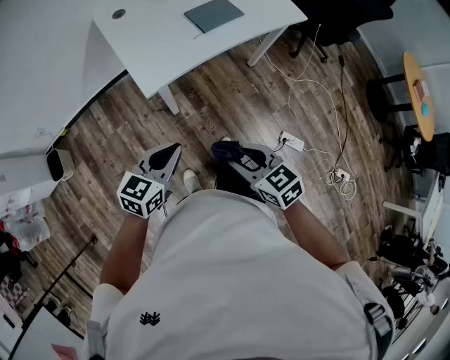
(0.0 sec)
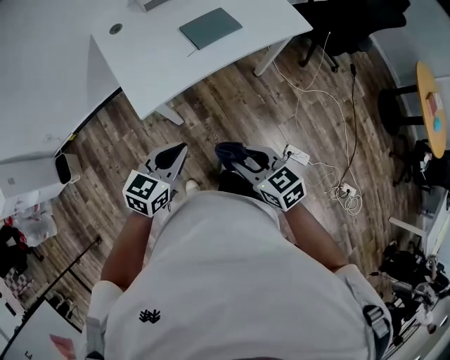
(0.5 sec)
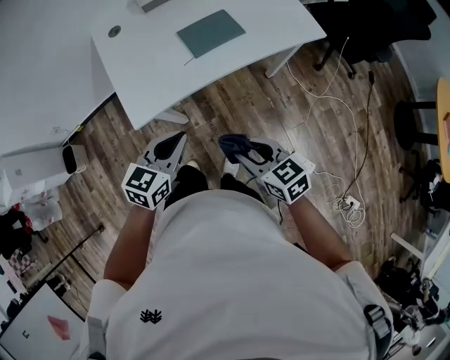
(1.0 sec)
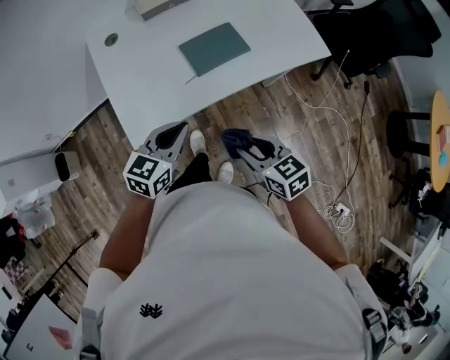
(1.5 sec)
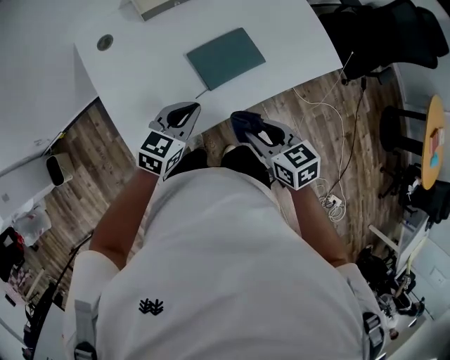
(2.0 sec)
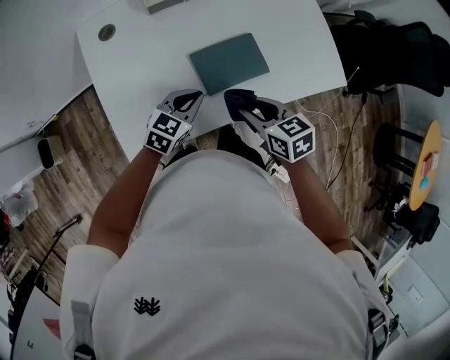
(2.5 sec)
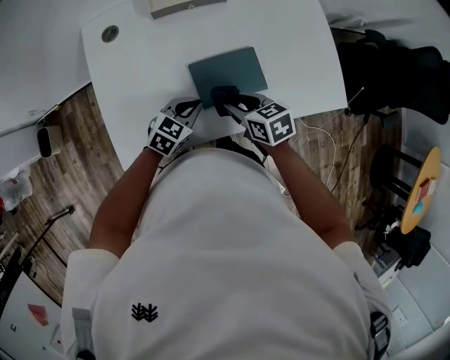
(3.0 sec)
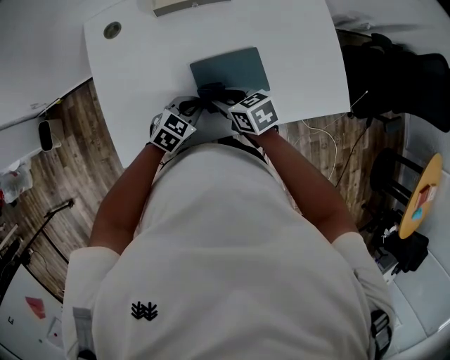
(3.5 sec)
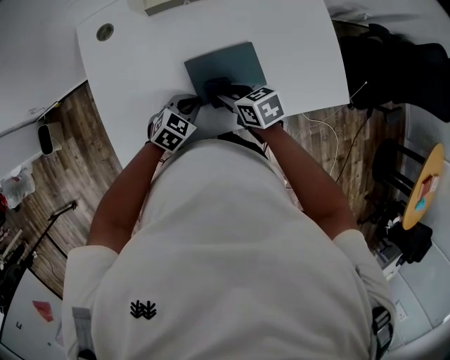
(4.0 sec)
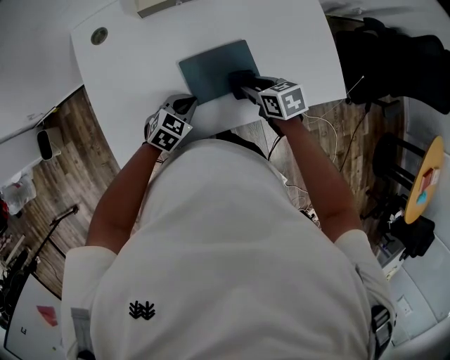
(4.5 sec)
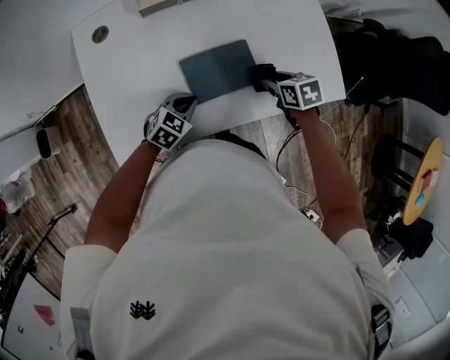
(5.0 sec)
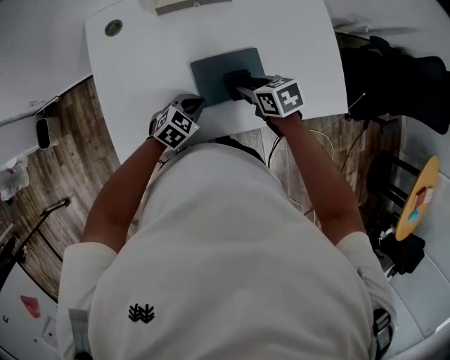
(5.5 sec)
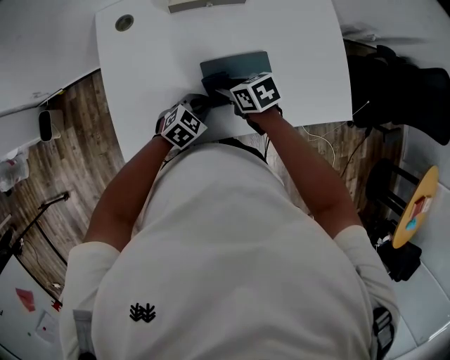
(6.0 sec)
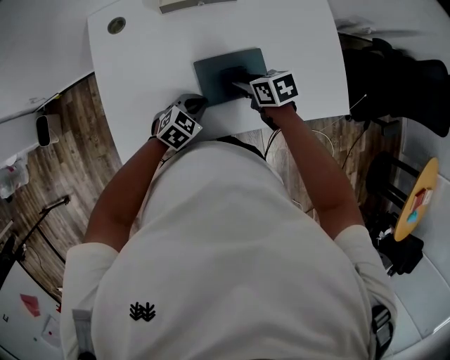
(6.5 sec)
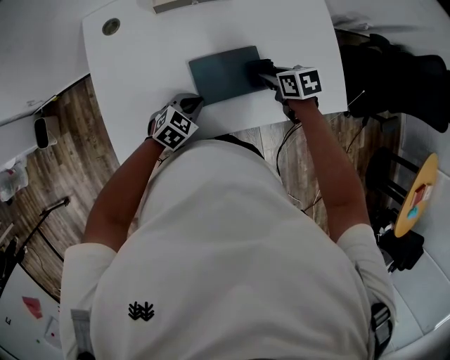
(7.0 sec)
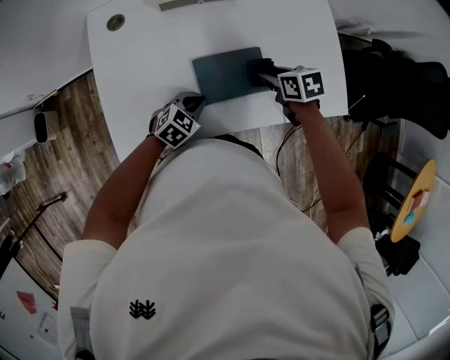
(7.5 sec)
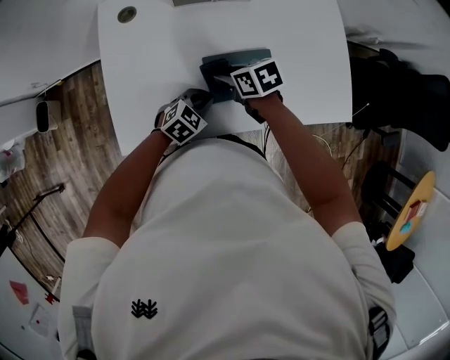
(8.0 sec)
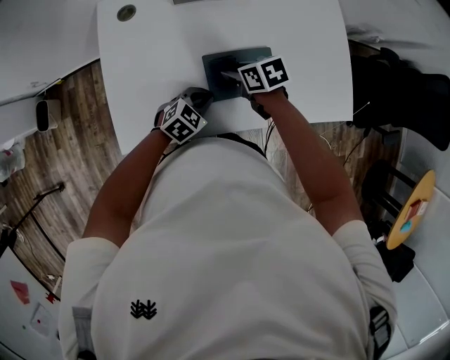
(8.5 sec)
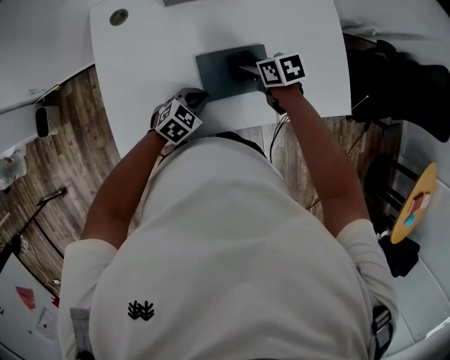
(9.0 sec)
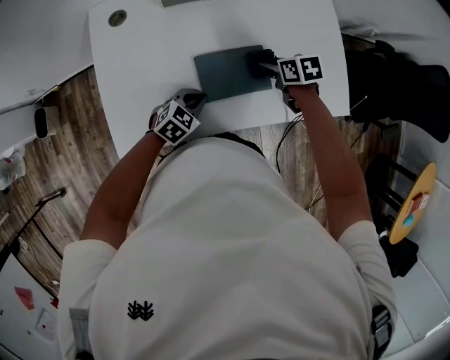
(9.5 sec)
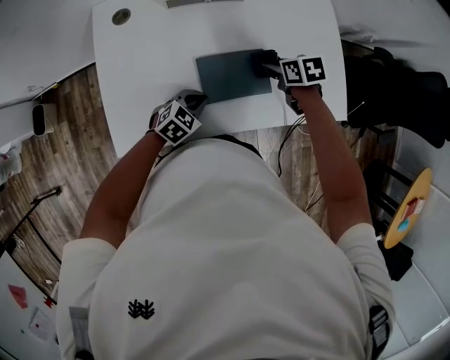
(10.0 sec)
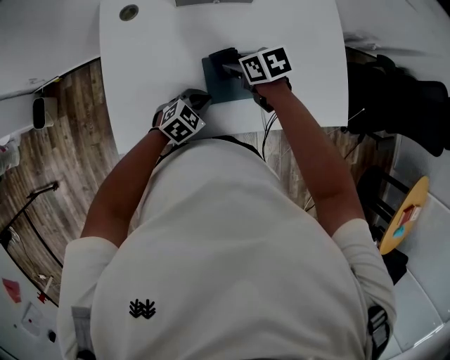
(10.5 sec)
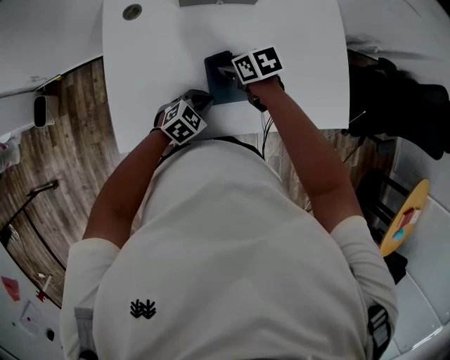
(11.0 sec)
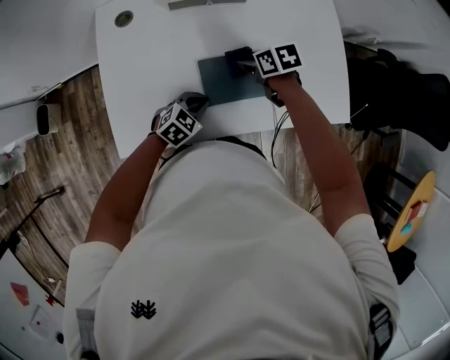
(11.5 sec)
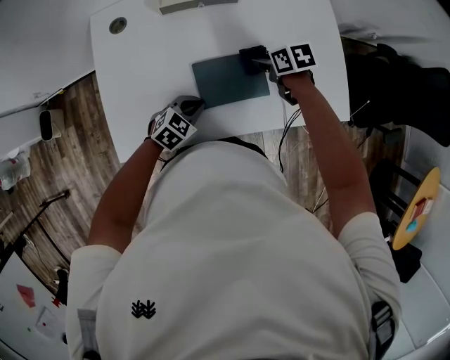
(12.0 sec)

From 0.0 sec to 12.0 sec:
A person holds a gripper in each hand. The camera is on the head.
From 0.0 sec to 2.0 sec: The left gripper is displaced forward by approximately 35 cm, while the right gripper travels forward and to the right by approximately 35 cm.
From 2.0 sec to 4.0 sec: The right gripper is displaced forward and downward by some 20 cm, and changes its angle by some 20 degrees; the left gripper heads downward and forward, covering some 15 cm, and turns by approximately 20 degrees.
From 4.0 sec to 6.0 sec: The right gripper reaches approximately 15 cm to the right, then returns.
From 8.0 sec to 10.0 sec: The right gripper moves some 15 cm.

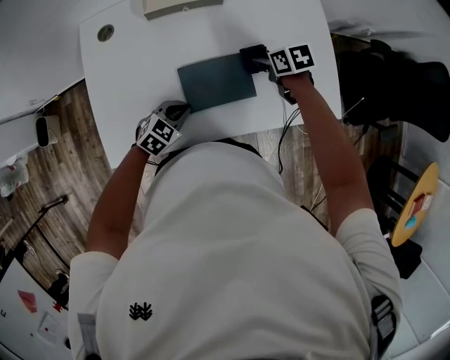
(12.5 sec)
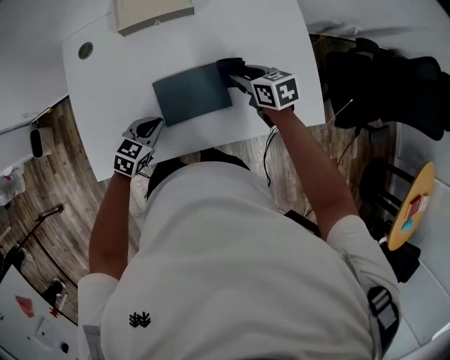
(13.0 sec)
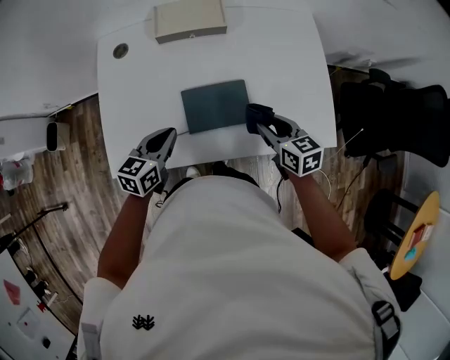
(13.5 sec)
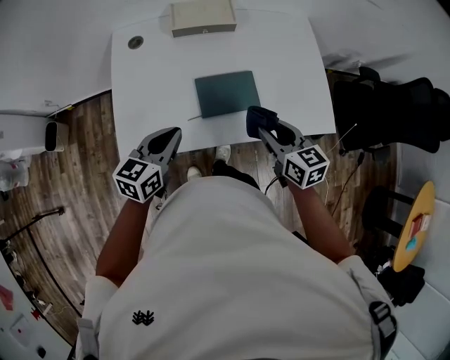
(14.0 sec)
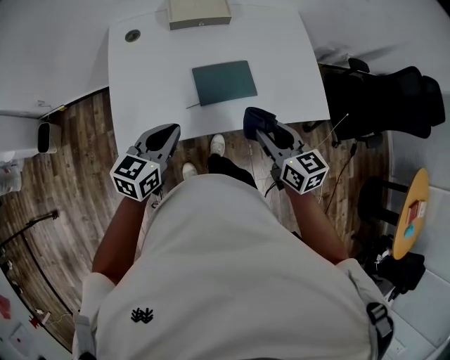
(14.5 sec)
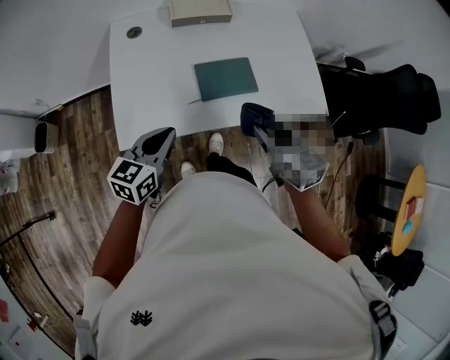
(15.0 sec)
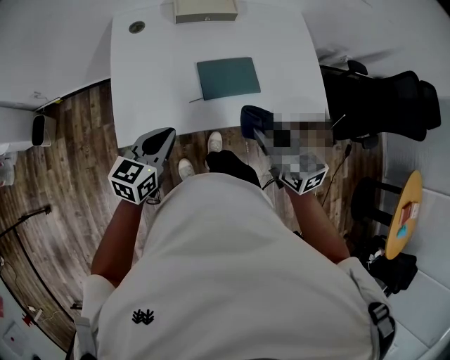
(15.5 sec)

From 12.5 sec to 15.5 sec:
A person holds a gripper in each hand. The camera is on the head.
From 12.5 sec to 14.0 sec: The left gripper heads upward, covering approximately 20 cm, and changes its angle by roughly 40 degrees; the right gripper heads backward and upward, covering approximately 25 cm, and turns by some 30 degrees.
From 14.0 sec to 15.5 sec: Both grippers move backward, roughly 5 cm.

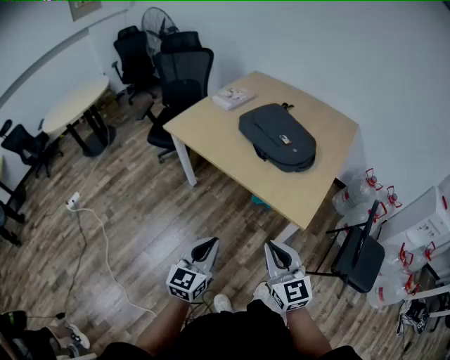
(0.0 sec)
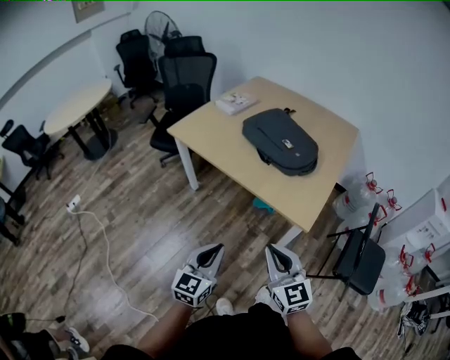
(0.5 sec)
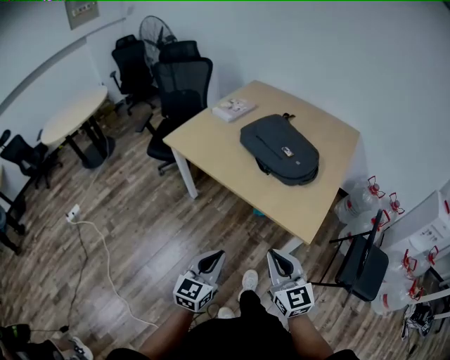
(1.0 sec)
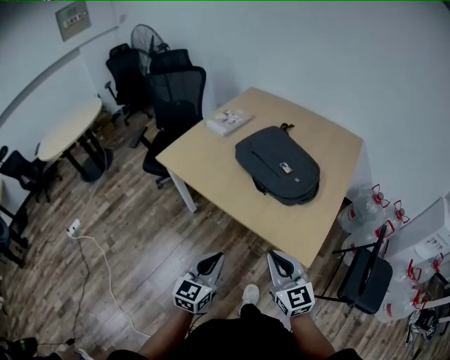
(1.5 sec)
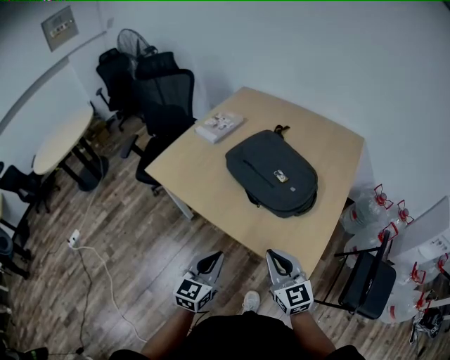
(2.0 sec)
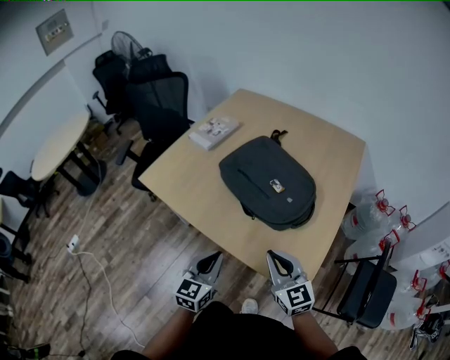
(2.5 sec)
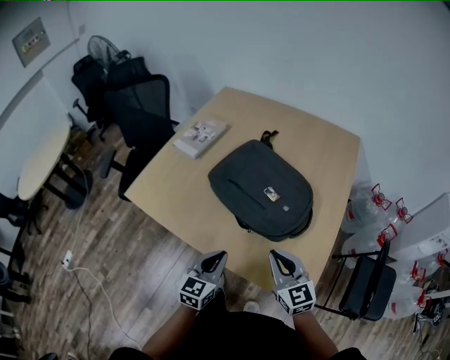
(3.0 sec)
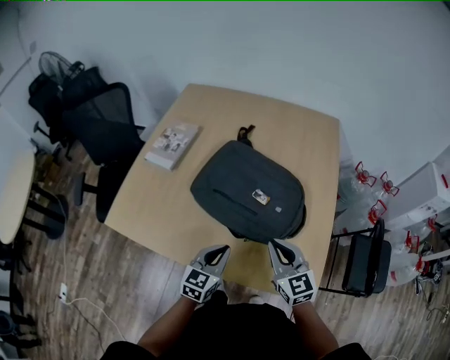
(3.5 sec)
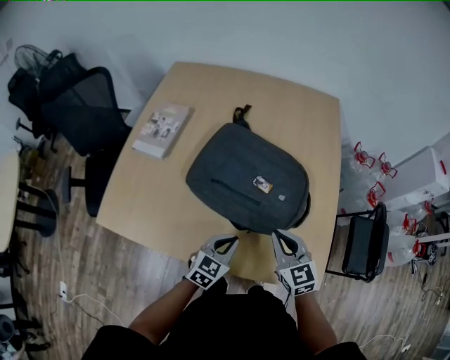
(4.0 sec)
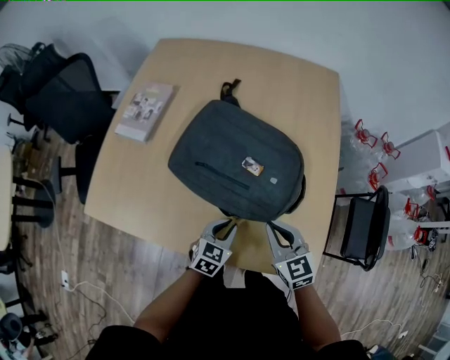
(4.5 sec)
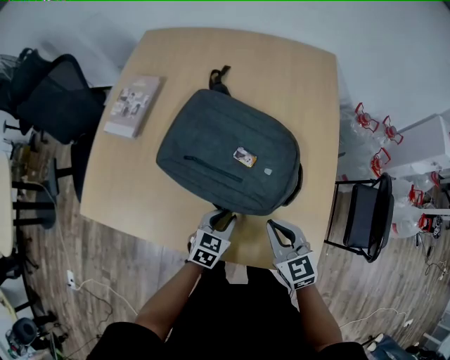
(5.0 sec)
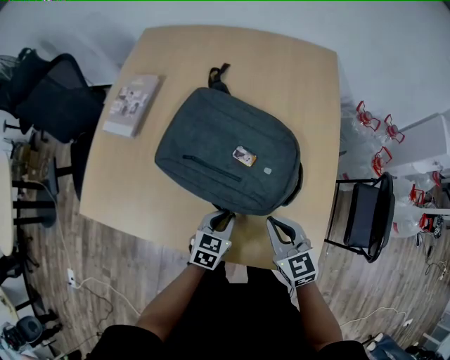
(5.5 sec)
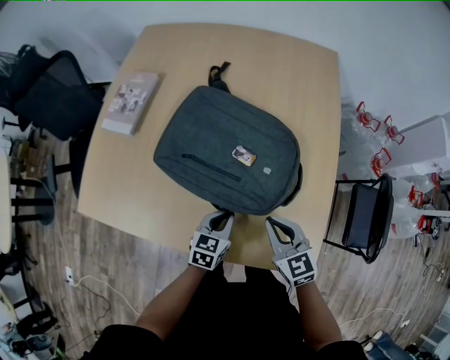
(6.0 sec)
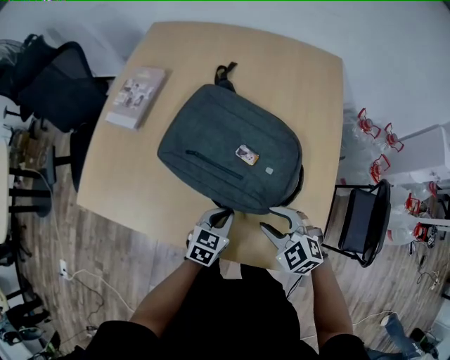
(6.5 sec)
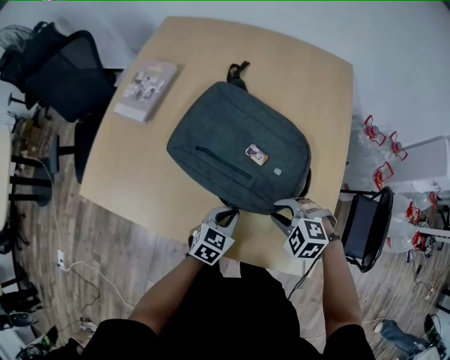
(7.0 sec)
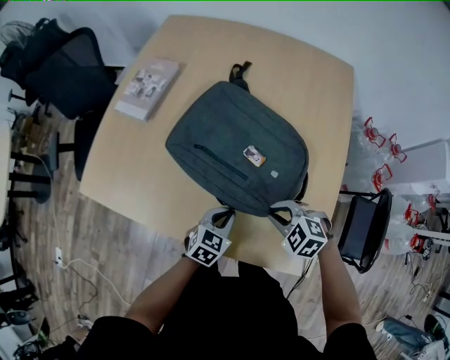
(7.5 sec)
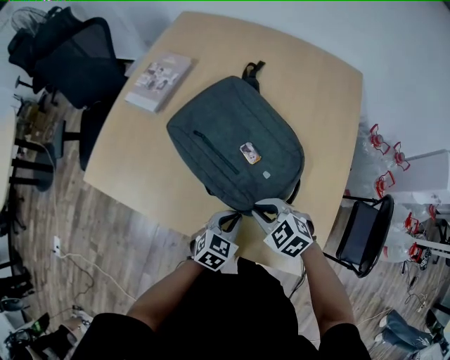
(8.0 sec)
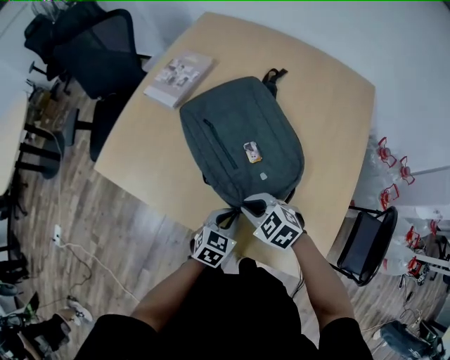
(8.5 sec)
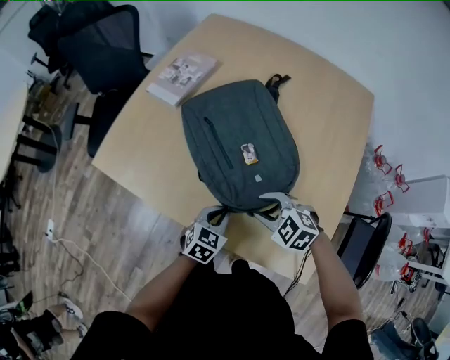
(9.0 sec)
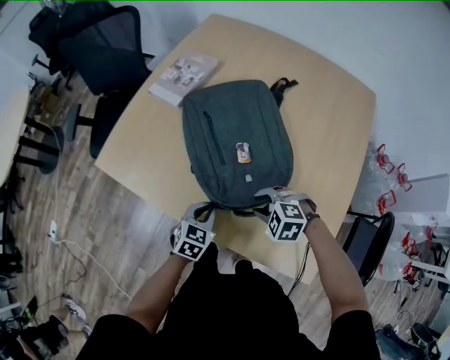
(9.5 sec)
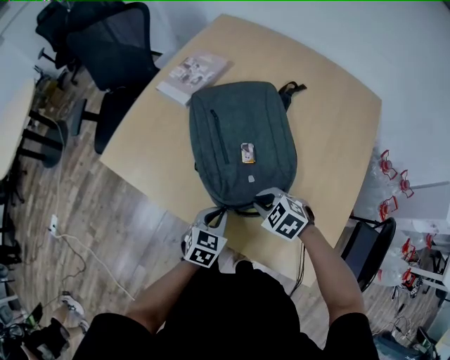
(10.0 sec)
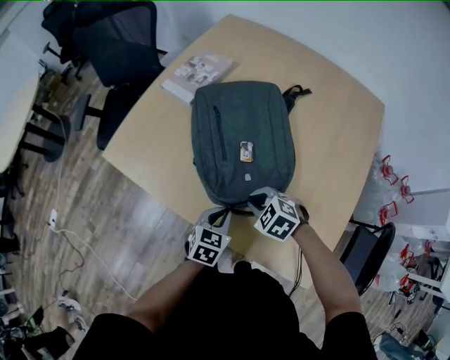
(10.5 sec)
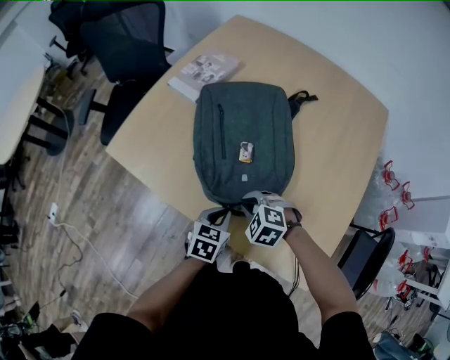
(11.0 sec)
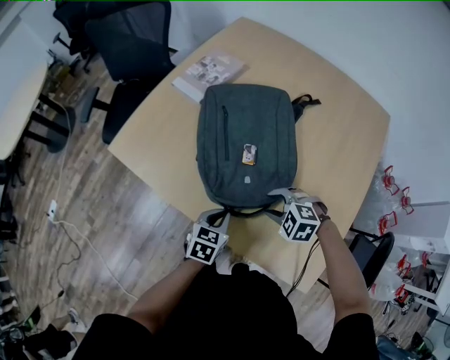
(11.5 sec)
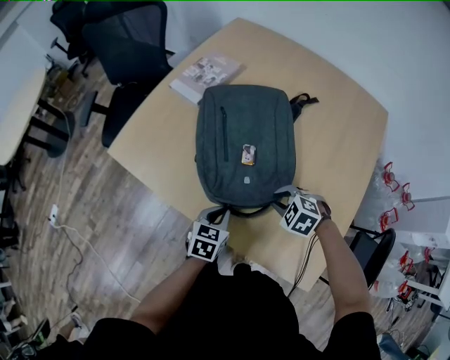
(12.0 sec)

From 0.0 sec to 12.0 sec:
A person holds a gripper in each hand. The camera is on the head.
From 0.0 sec to 2.0 sec: The two grippers go some 20 cm forward.
From 2.0 sec to 4.0 sec: The right gripper moves approximately 20 cm, and changes its angle by approximately 30 degrees. The left gripper moves some 25 cm, and changes its angle by roughly 40 degrees.
From 4.0 sec to 6.0 sec: The left gripper is displaced downward by approximately 5 cm. The right gripper shifts by roughly 5 cm.
From 6.0 sec to 8.0 sec: The right gripper travels to the left by roughly 5 cm, turns by roughly 40 degrees, and opens and closes again.
From 8.0 sec to 10.0 sec: The left gripper travels to the left by some 10 cm, while the right gripper moves approximately 5 cm, and opens and closes again.
From 10.0 sec to 12.0 sec: The right gripper opens, then closes again.
